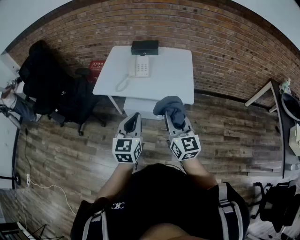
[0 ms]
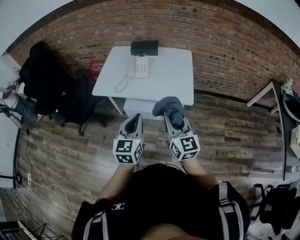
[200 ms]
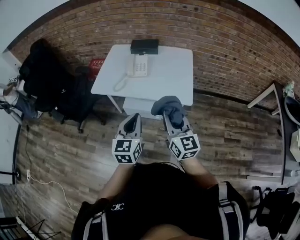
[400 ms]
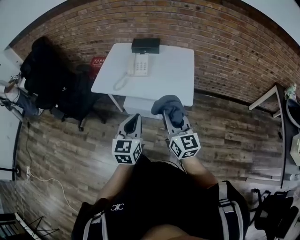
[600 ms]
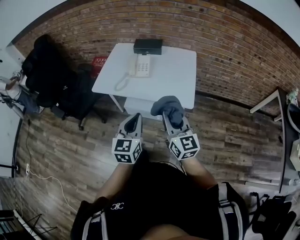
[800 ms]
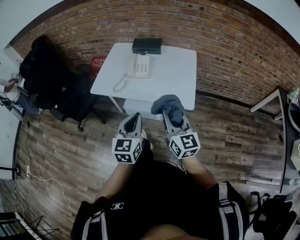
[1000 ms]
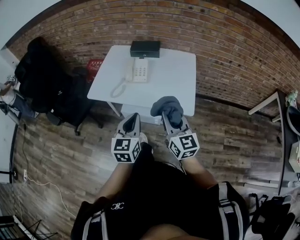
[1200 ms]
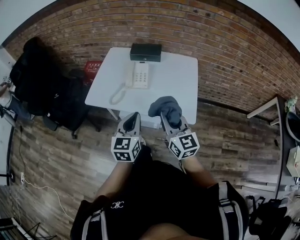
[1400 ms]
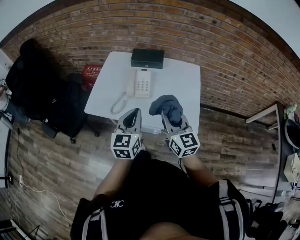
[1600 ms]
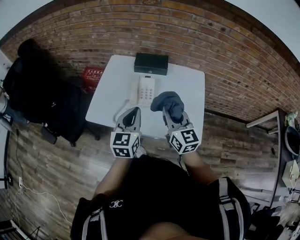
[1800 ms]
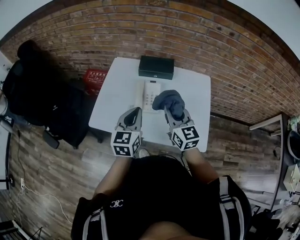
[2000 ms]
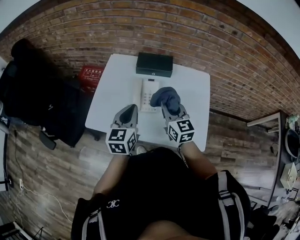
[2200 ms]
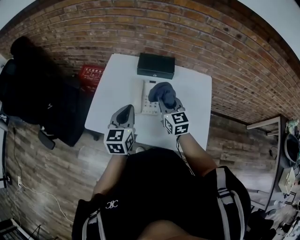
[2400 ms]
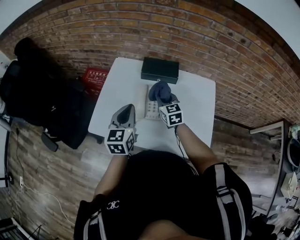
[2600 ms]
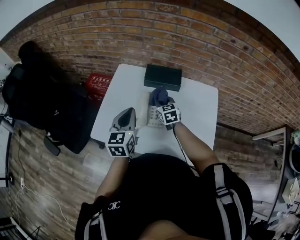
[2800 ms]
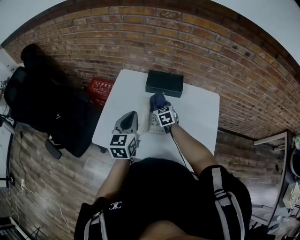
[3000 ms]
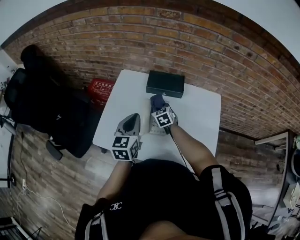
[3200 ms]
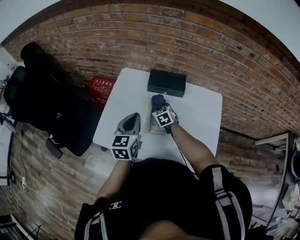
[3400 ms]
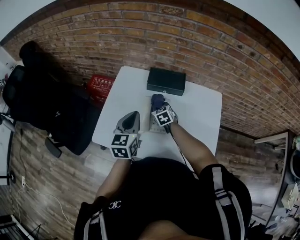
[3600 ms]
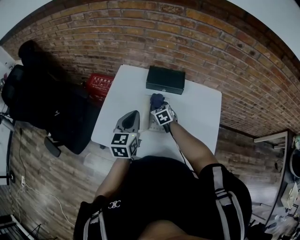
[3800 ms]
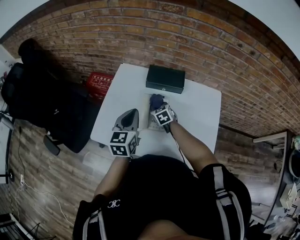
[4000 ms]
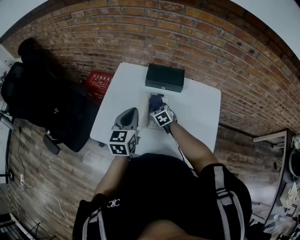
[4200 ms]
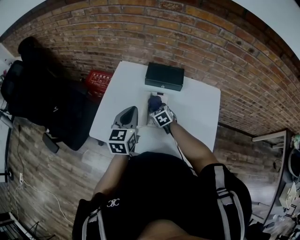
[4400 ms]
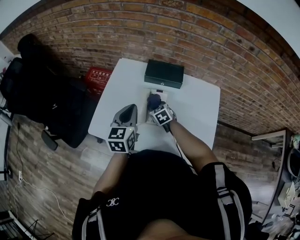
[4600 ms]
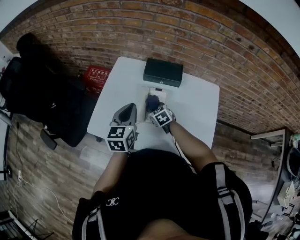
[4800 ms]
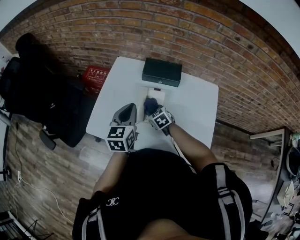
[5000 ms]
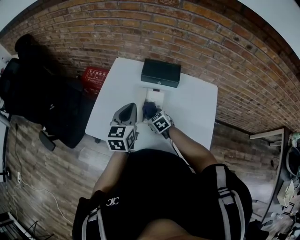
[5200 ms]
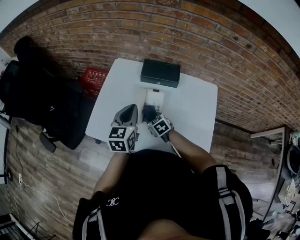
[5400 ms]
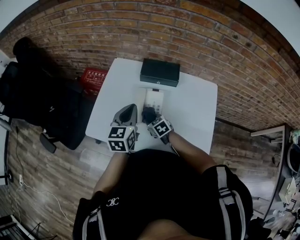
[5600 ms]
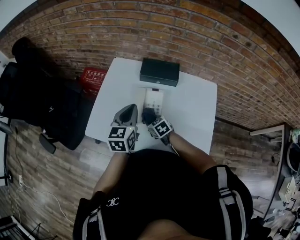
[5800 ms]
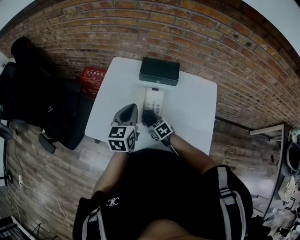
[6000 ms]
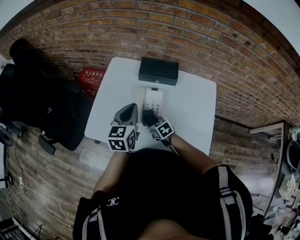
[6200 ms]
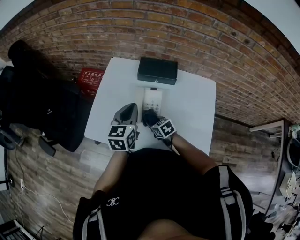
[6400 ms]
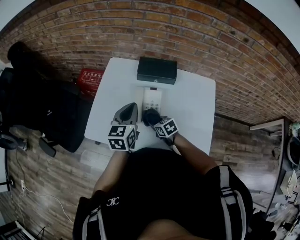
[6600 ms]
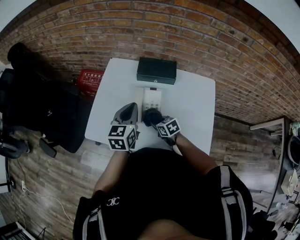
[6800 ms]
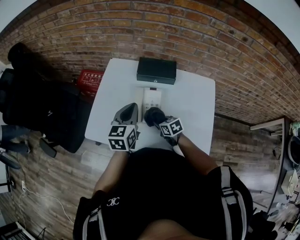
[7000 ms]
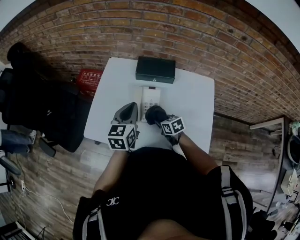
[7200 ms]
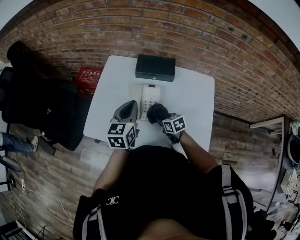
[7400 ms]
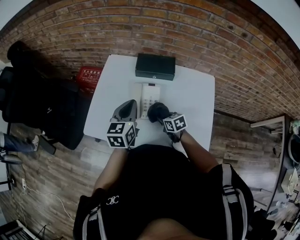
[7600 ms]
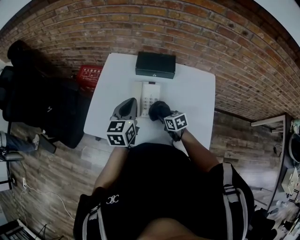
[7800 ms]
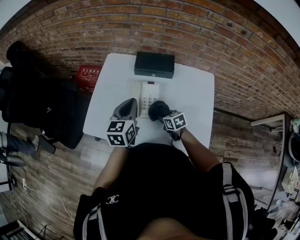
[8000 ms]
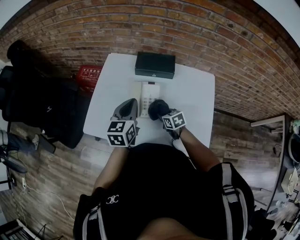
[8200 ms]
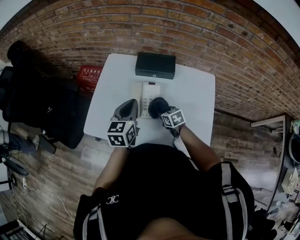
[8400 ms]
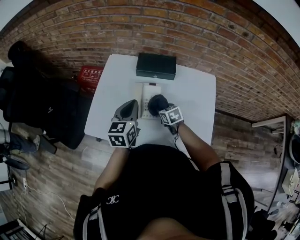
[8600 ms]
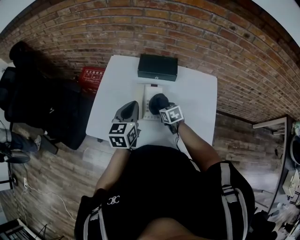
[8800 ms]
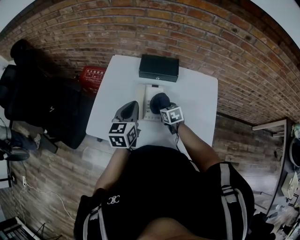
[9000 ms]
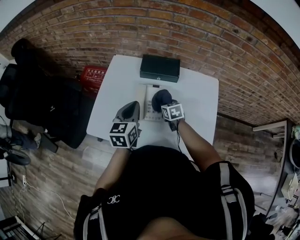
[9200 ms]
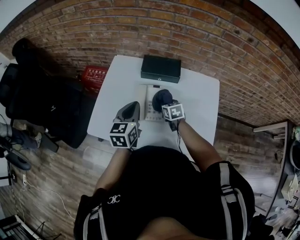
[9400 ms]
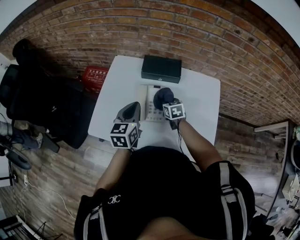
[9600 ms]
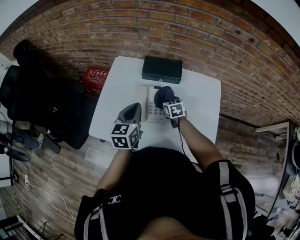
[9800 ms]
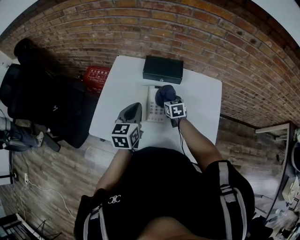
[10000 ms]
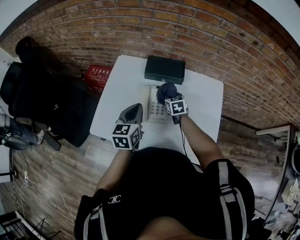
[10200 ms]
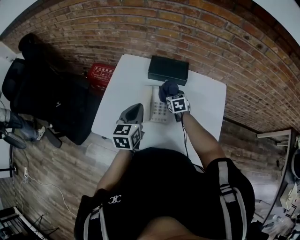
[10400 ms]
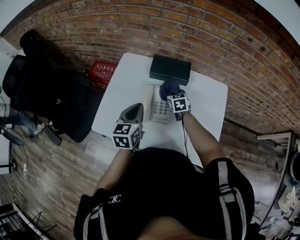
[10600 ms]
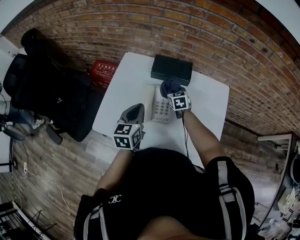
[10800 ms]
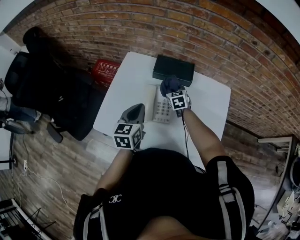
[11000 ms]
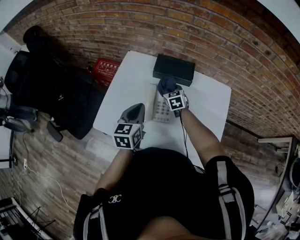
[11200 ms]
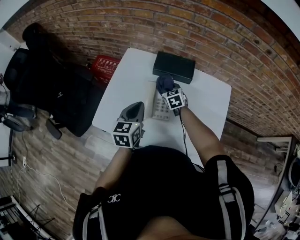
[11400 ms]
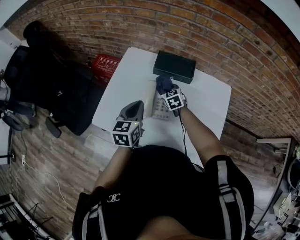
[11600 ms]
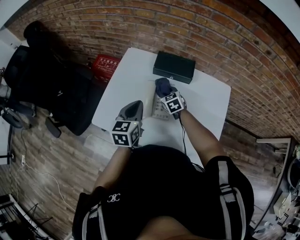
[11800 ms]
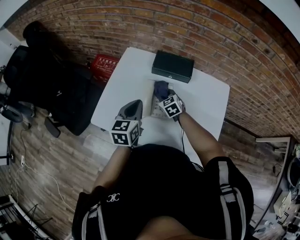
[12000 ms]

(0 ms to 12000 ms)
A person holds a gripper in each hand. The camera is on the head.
0 ms - 1600 ms: Both grippers travel together forward, approximately 25 cm.
1600 ms - 3000 ms: The left gripper shifts approximately 25 cm forward; the right gripper moves forward and downward, some 40 cm, and points its fingers about 30 degrees further downward.
3000 ms - 4400 ms: The right gripper shifts some 5 cm downward.
4400 ms - 6000 ms: The right gripper is displaced backward by some 10 cm.
6000 ms - 7600 ms: The right gripper moves to the right, about 10 cm.
7600 ms - 9000 ms: The right gripper goes some 5 cm forward.
9000 ms - 10400 ms: The right gripper is displaced forward by some 10 cm.
10400 ms - 12000 ms: The right gripper goes some 10 cm to the left, and turns by about 20 degrees.

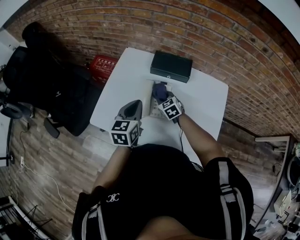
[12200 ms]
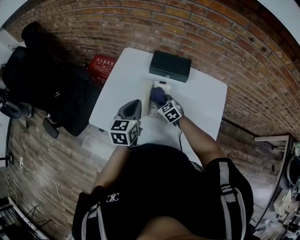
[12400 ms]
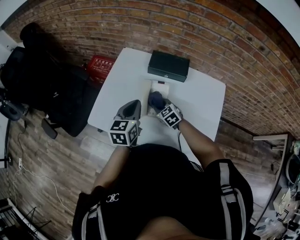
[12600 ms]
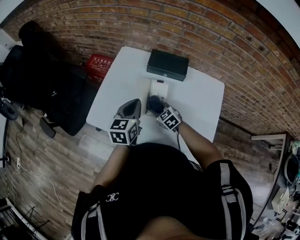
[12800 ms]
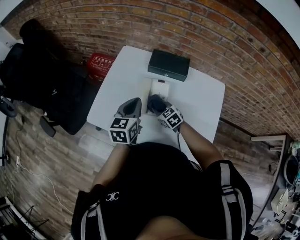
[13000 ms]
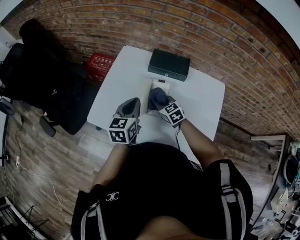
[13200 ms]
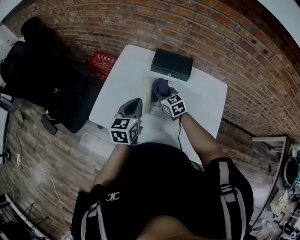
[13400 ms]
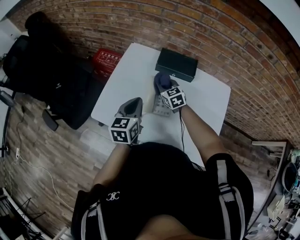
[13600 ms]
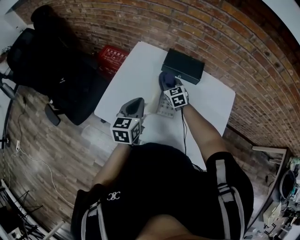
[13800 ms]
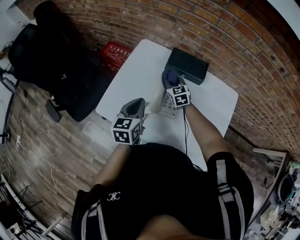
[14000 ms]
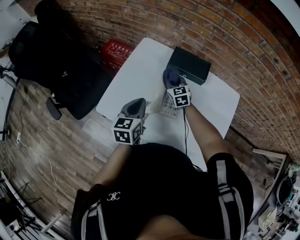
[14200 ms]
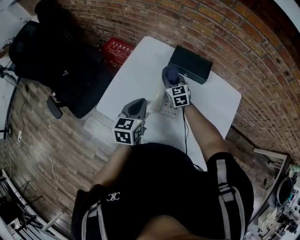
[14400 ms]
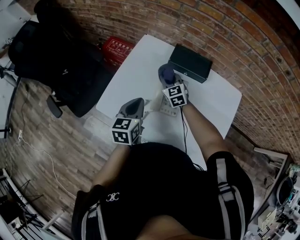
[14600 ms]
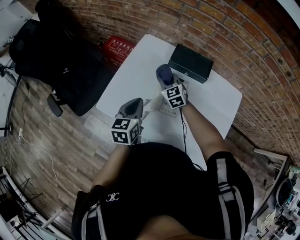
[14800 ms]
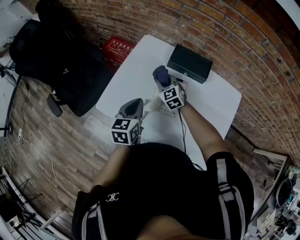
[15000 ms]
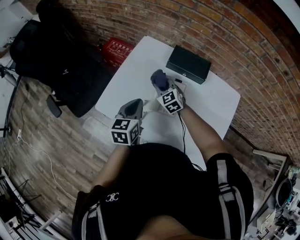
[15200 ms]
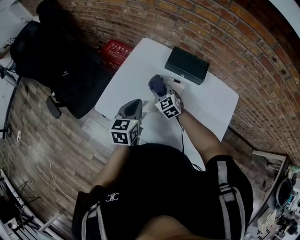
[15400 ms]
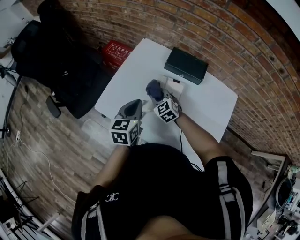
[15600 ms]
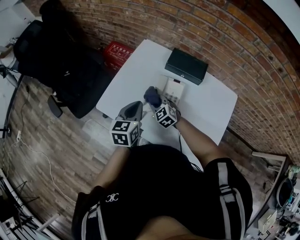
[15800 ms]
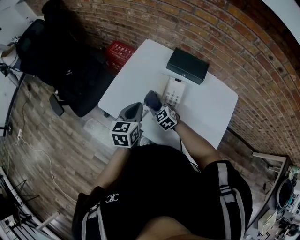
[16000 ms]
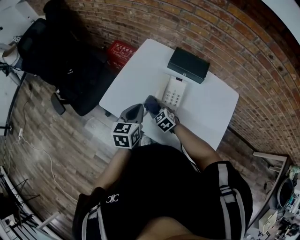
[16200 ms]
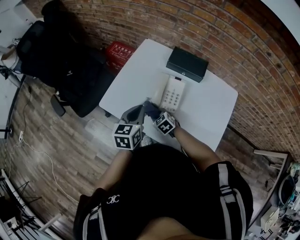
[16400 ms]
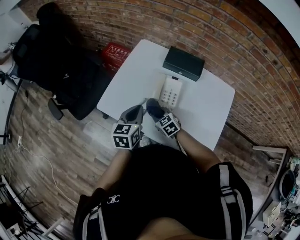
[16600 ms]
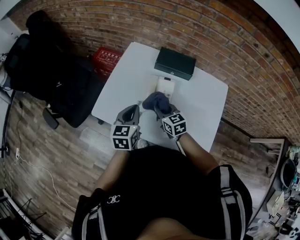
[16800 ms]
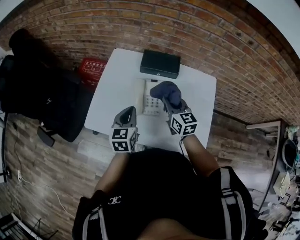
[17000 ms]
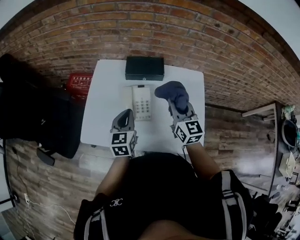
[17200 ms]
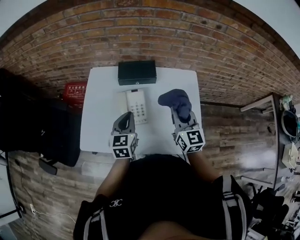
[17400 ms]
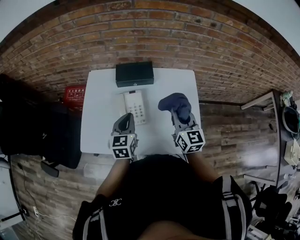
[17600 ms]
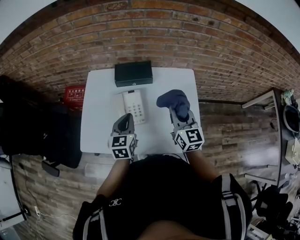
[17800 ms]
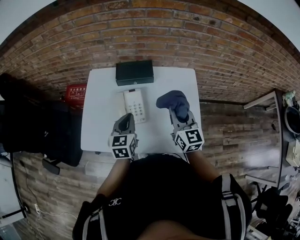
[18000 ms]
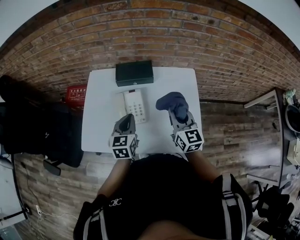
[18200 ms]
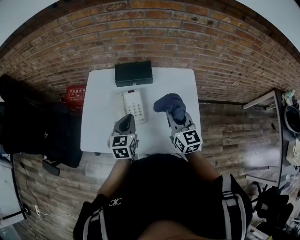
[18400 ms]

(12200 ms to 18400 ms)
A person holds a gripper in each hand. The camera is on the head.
12200 ms - 13800 ms: The right gripper is displaced forward by roughly 5 cm.
13800 ms - 15400 ms: The right gripper is displaced to the left and backward by some 10 cm.
15400 ms - 16800 ms: The right gripper is displaced backward by about 10 cm, and rotates approximately 30 degrees.
16800 ms - 18400 ms: The right gripper ends up about 25 cm from where it was, and turns by roughly 40 degrees, while the left gripper shifts by roughly 10 cm.

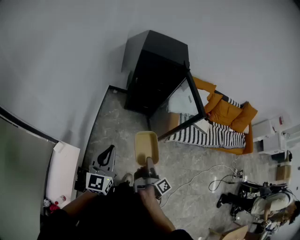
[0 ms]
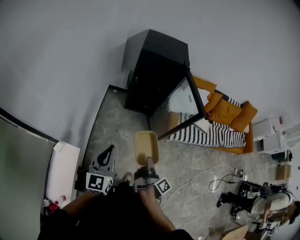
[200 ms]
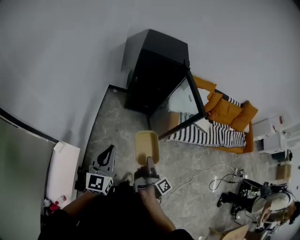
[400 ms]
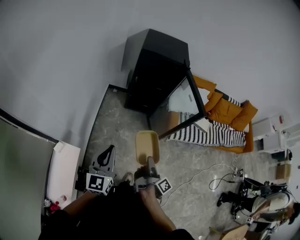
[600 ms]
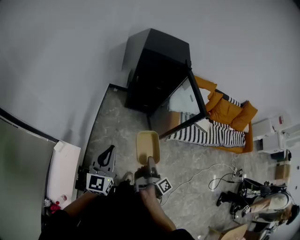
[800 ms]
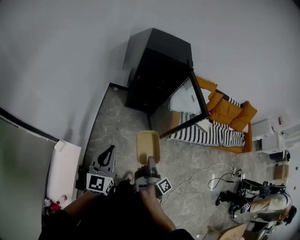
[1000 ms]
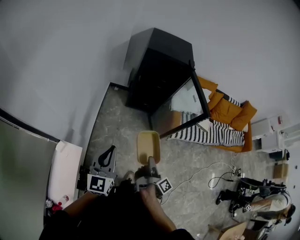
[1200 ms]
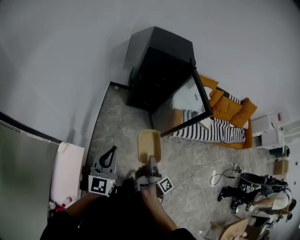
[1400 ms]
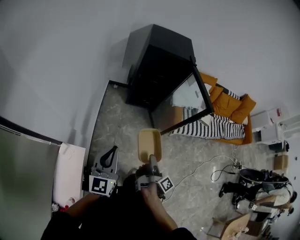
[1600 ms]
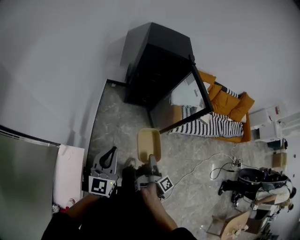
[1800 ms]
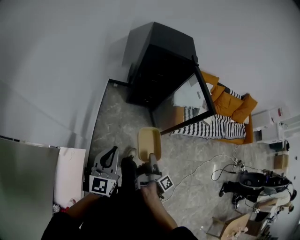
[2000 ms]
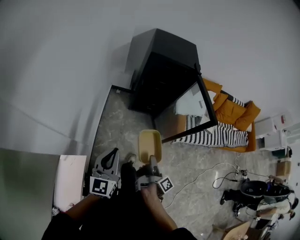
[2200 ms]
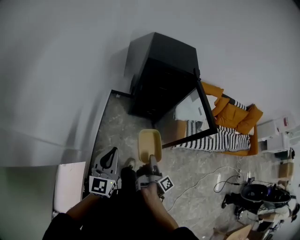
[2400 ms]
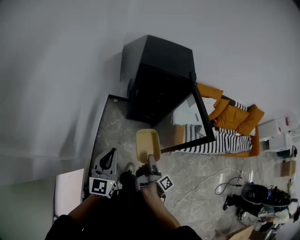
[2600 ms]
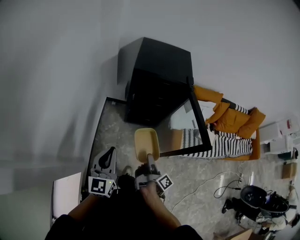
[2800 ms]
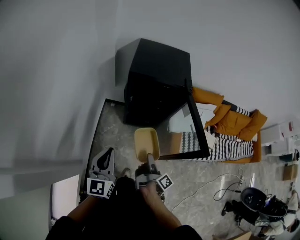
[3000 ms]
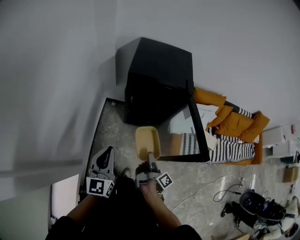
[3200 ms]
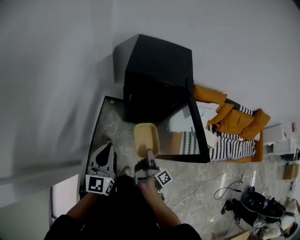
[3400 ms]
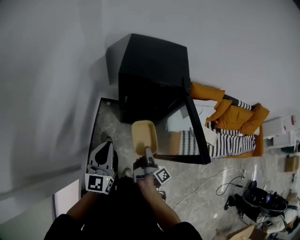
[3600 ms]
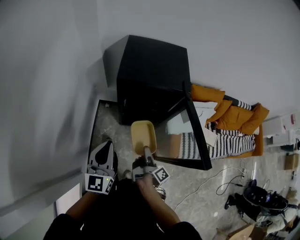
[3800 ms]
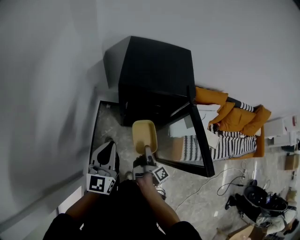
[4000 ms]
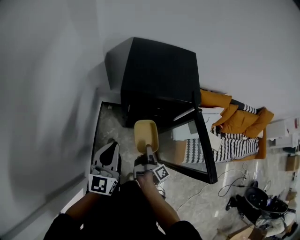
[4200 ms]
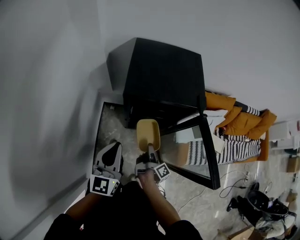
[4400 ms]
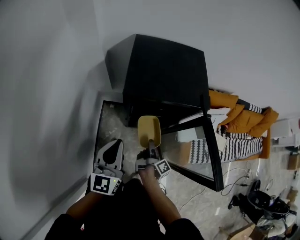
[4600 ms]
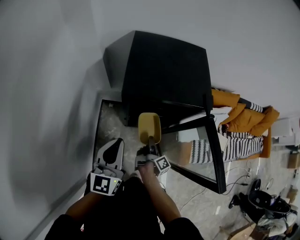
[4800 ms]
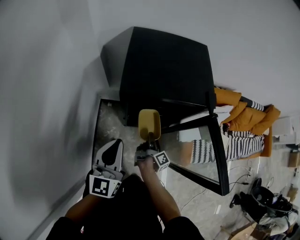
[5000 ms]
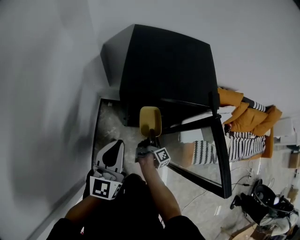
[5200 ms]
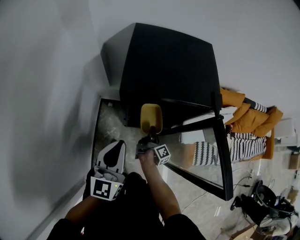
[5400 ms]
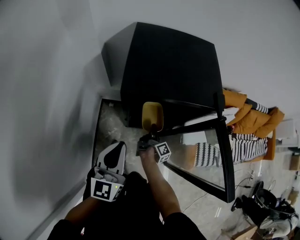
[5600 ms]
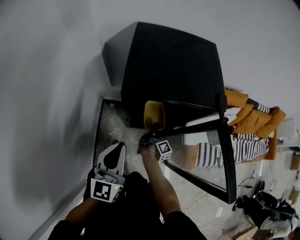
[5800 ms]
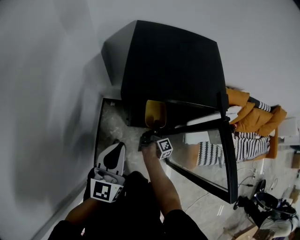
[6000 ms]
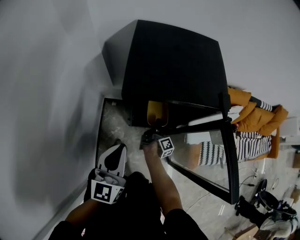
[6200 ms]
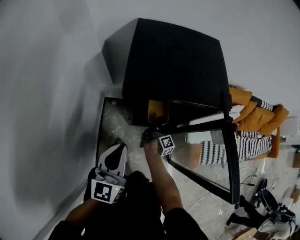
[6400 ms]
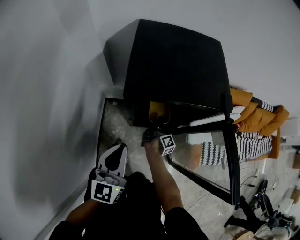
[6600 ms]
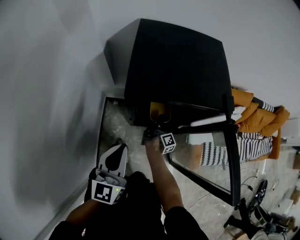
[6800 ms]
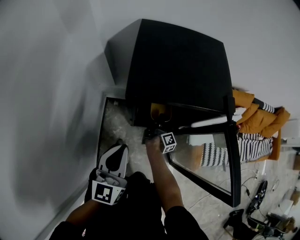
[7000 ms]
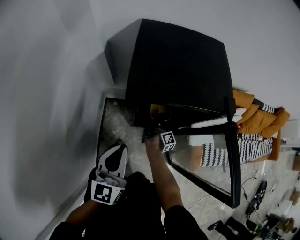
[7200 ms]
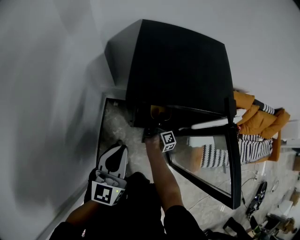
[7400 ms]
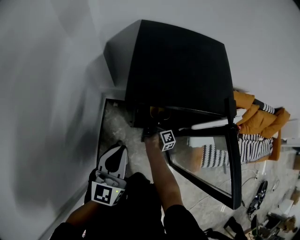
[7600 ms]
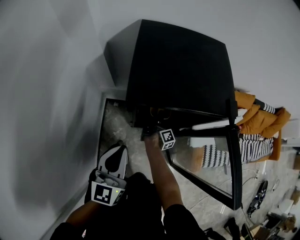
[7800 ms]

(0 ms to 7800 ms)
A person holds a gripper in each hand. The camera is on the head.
0 ms - 1600 ms: The left gripper ends up roughly 5 cm from where it was.
1600 ms - 3200 ms: The left gripper moves some 30 cm.
3200 ms - 4600 ms: The left gripper shifts by some 20 cm.
4600 ms - 6200 ms: The left gripper moves downward, roughly 10 cm.
